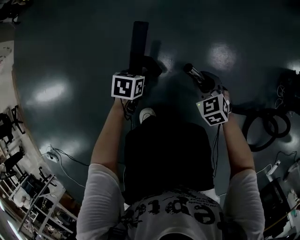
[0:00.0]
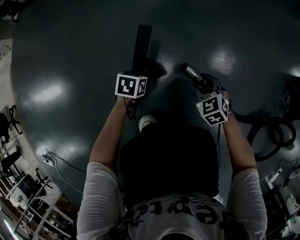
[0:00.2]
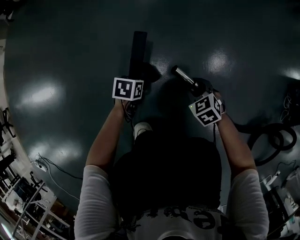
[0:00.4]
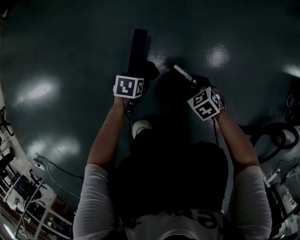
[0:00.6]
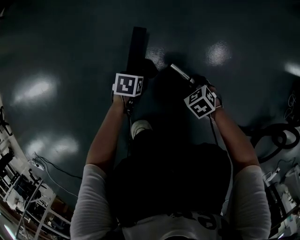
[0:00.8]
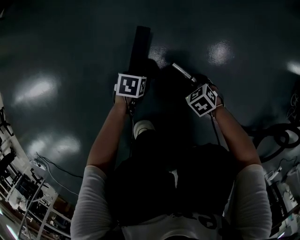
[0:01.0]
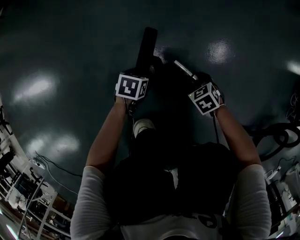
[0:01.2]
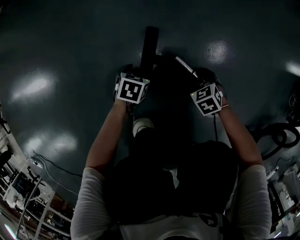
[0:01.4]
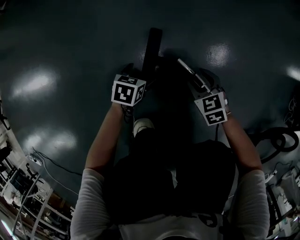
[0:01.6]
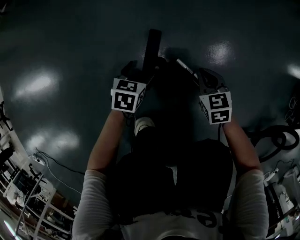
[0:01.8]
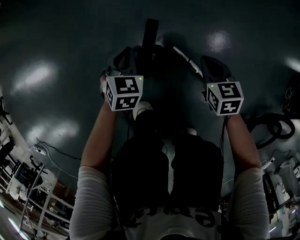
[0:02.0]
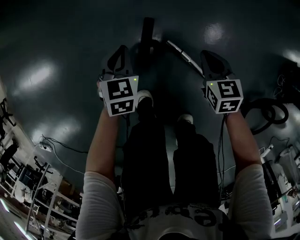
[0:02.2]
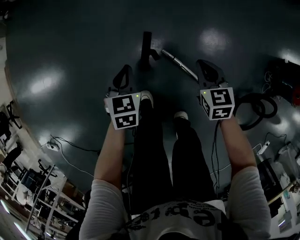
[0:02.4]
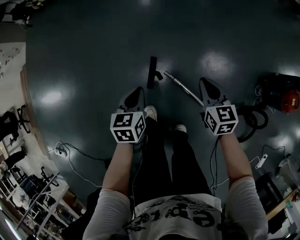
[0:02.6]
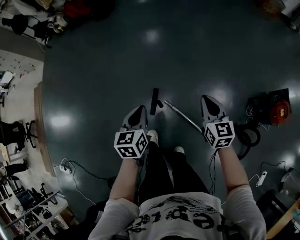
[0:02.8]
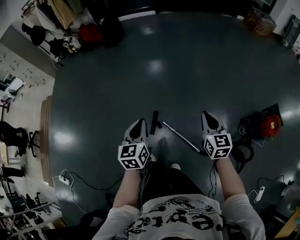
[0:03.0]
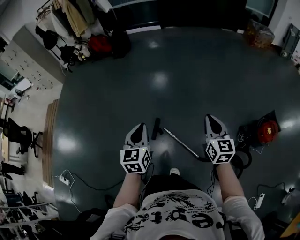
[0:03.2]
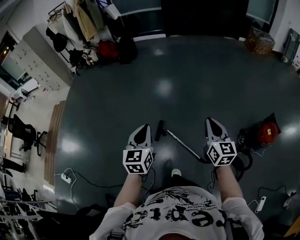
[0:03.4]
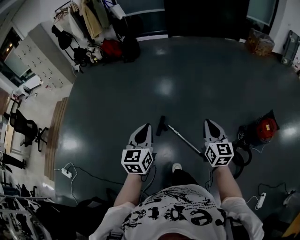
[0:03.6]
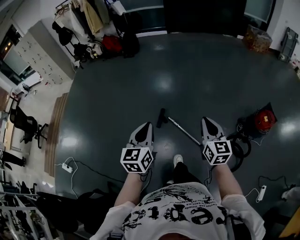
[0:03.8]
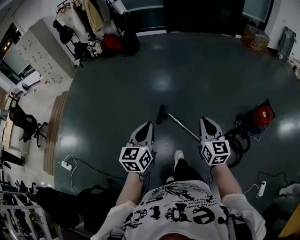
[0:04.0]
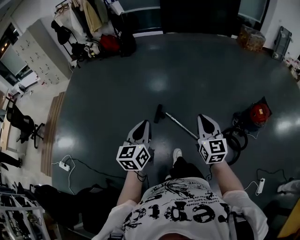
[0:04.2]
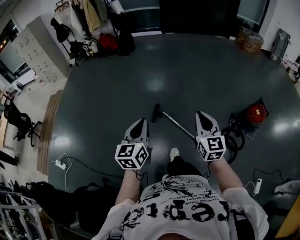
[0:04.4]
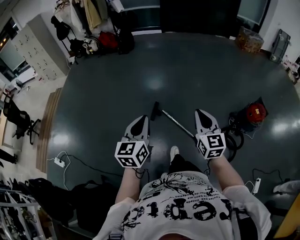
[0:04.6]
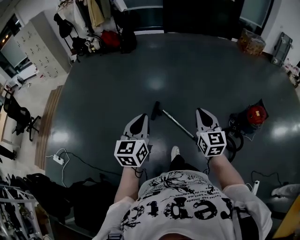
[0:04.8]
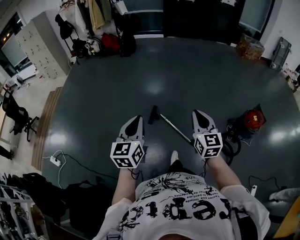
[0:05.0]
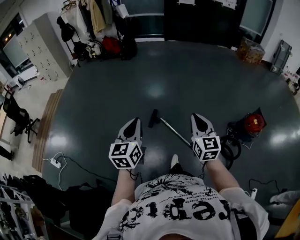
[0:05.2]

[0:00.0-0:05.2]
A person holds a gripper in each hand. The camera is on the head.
0:00.0 to 0:01.8: Both grippers move downward, about 20 cm. The right gripper closes up. Meanwhile the left gripper opens up.
0:01.8 to 0:03.4: The grippers both shift upward by roughly 1 m. The left gripper points its fingers roughly 40 degrees further upward, and closes up; the right gripper tips its fingers upward by some 40 degrees.
0:03.4 to 0:05.2: The grippers both shift backward by about 25 cm.

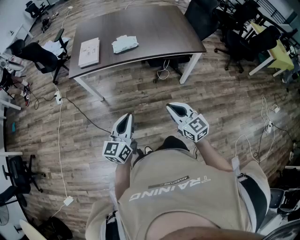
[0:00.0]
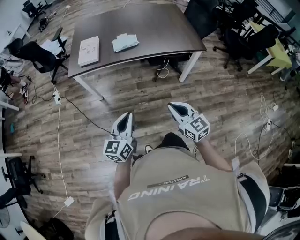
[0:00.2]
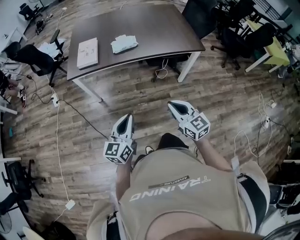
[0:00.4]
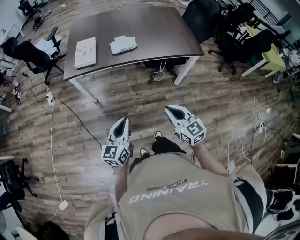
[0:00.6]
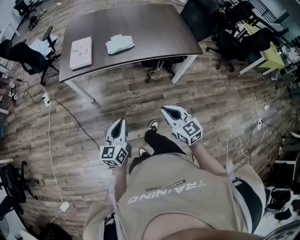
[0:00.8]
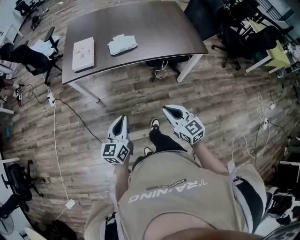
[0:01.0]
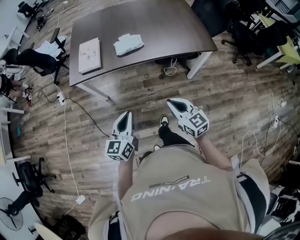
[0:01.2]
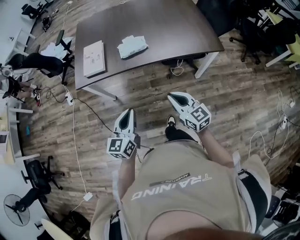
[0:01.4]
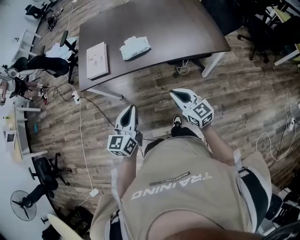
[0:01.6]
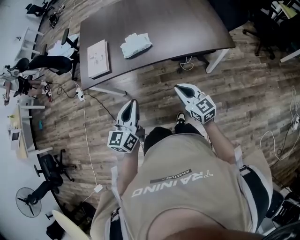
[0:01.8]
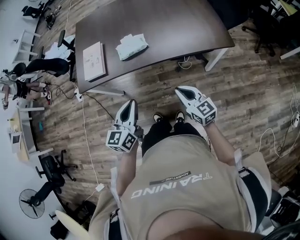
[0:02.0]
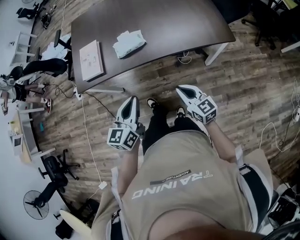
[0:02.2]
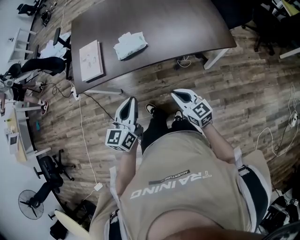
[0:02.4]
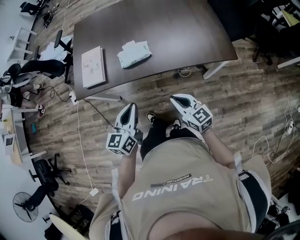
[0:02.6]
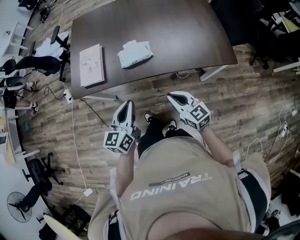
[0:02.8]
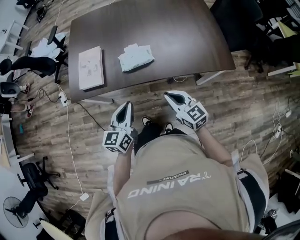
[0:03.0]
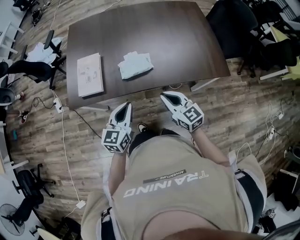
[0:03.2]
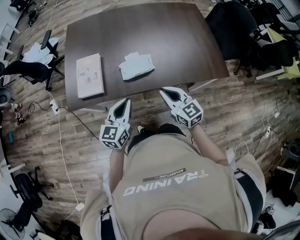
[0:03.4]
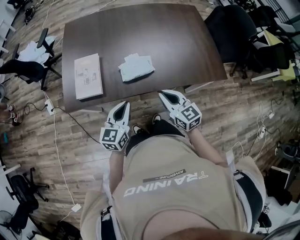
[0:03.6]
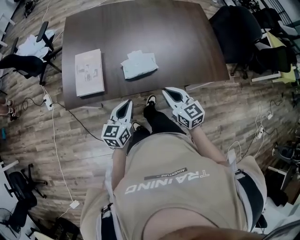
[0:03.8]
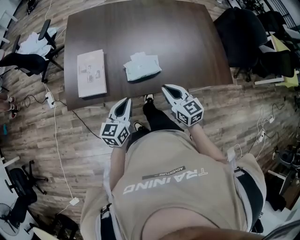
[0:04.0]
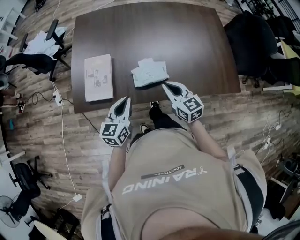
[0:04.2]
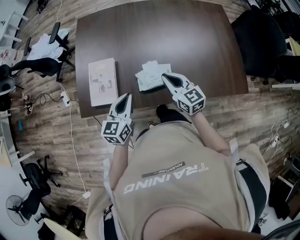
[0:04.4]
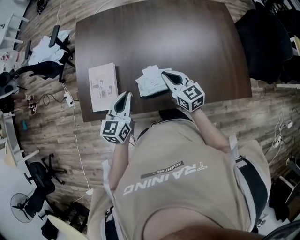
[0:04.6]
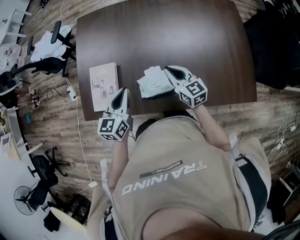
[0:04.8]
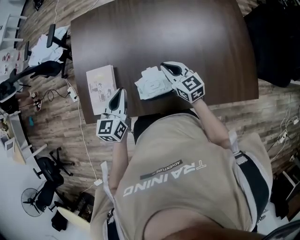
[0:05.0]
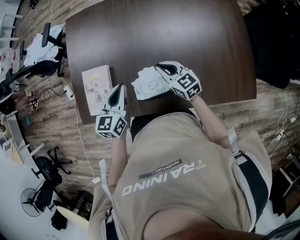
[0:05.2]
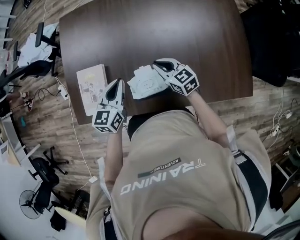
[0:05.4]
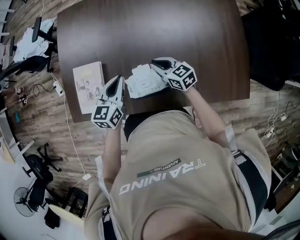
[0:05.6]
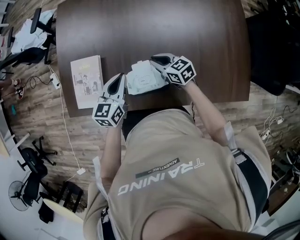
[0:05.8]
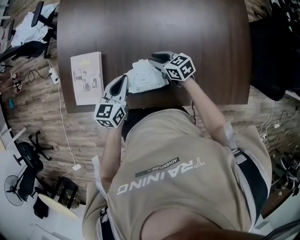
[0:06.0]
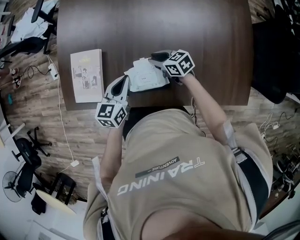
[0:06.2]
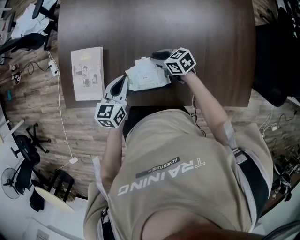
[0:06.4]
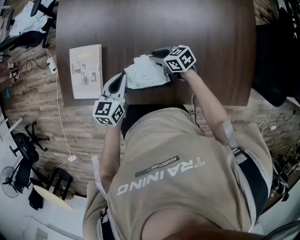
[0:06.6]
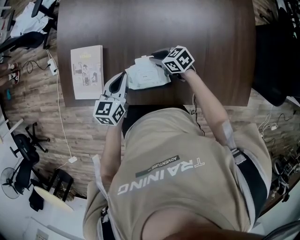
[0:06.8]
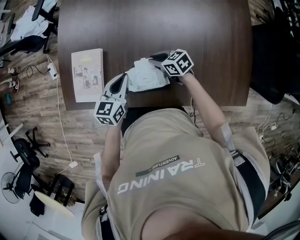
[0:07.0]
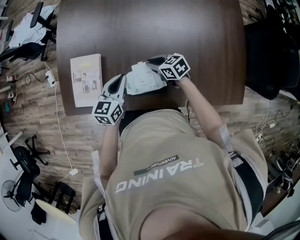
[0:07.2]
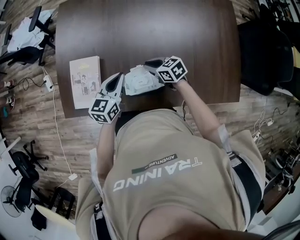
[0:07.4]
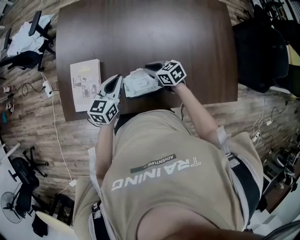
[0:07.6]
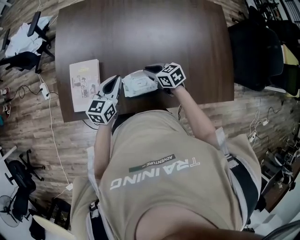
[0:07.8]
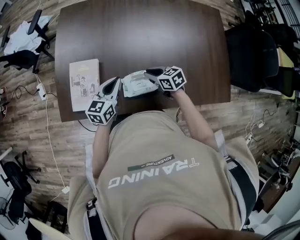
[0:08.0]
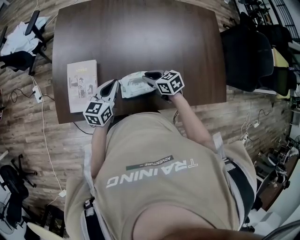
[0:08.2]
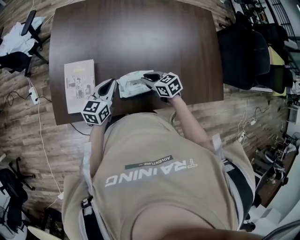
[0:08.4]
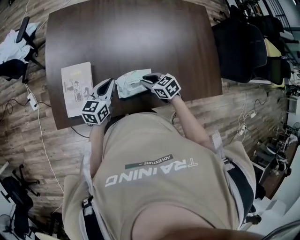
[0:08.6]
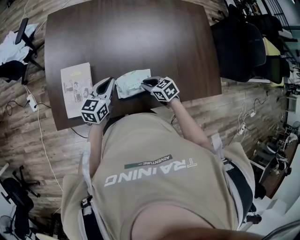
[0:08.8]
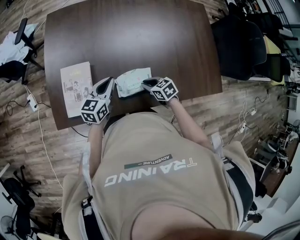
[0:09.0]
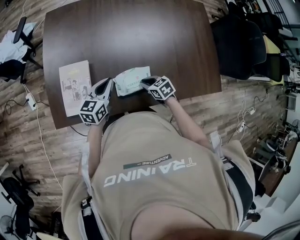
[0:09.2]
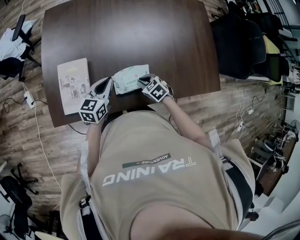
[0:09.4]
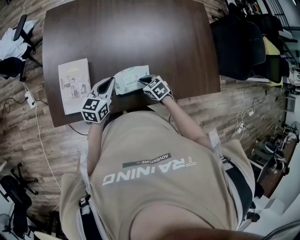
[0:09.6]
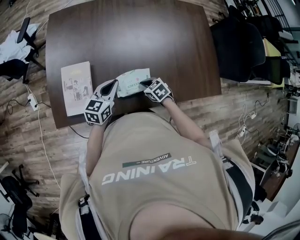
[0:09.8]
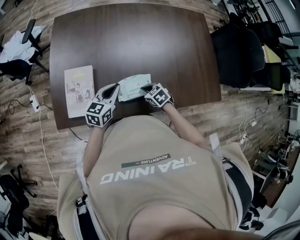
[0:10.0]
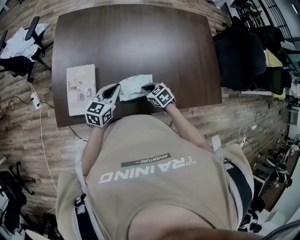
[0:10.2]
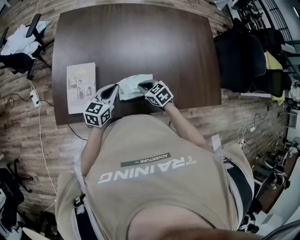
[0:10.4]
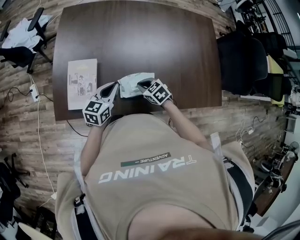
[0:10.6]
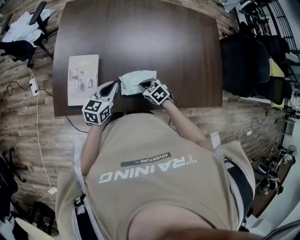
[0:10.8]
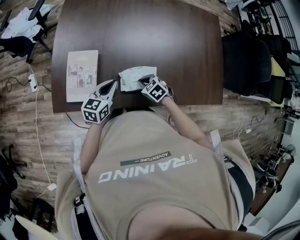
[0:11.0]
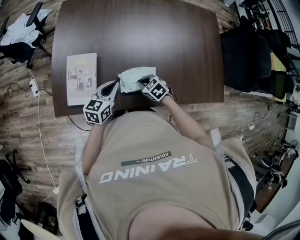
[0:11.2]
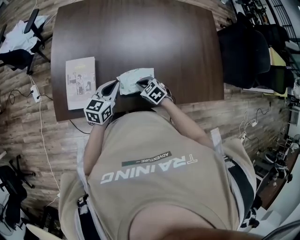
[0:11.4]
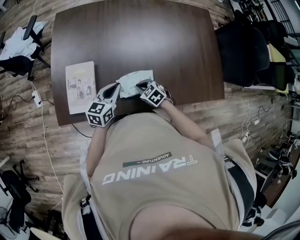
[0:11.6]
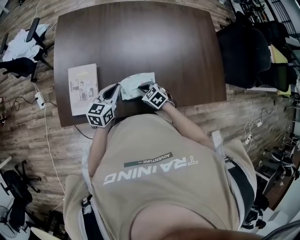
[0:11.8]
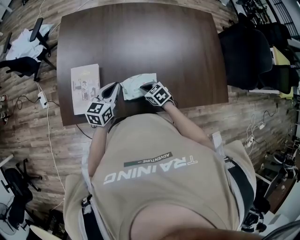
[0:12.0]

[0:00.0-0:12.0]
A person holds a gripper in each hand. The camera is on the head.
0:00.0 to 0:01.6: Both grippers travel together forward, roughly 20 cm.
0:01.6 to 0:03.0: The grippers both shift forward by some 15 cm.
0:03.0 to 0:04.4: Both grippers travel together forward, roughly 25 cm.
0:04.4 to 0:06.0: The right gripper goes some 20 cm downward and forward, and swivels approximately 30 degrees, while the left gripper moves forward, downward and to the right, approximately 15 cm.
0:06.0 to 0:07.6: The grippers stay close to where they were, moving slightly.
0:07.6 to 0:09.0: The right gripper travels backward by some 10 cm.
0:09.0 to 0:10.4: The right gripper ends up roughly 5 cm from where it was.
0:10.4 to 0:12.0: There are only small adjustments of the grippers.

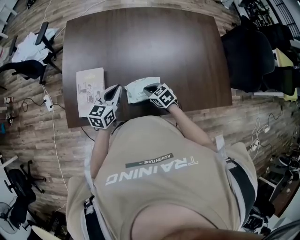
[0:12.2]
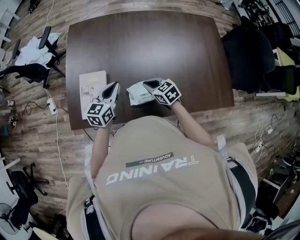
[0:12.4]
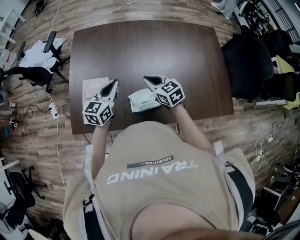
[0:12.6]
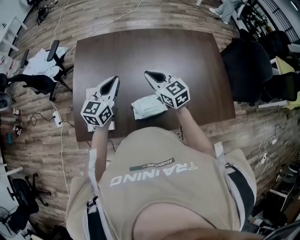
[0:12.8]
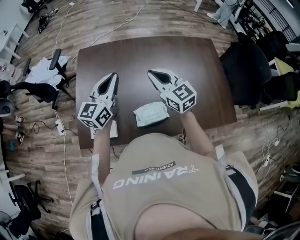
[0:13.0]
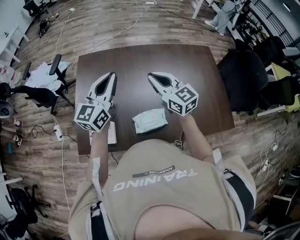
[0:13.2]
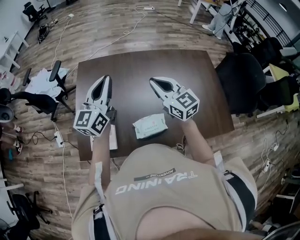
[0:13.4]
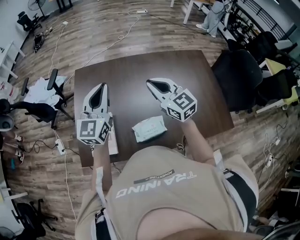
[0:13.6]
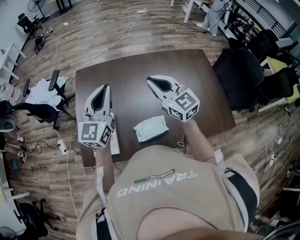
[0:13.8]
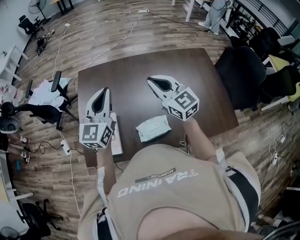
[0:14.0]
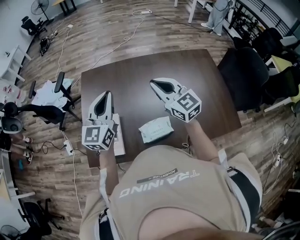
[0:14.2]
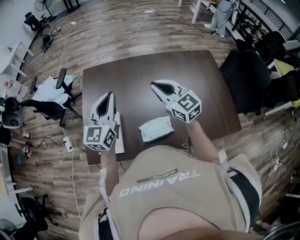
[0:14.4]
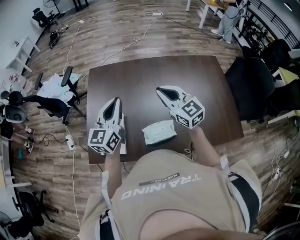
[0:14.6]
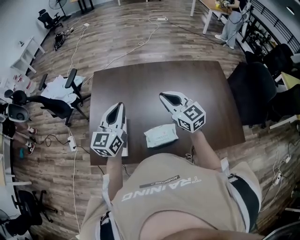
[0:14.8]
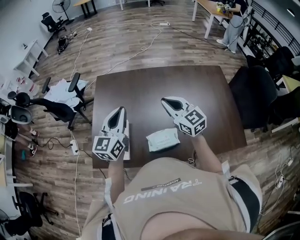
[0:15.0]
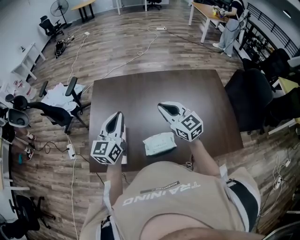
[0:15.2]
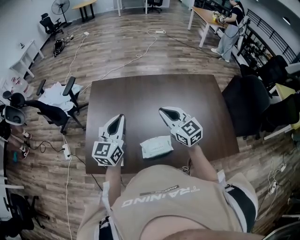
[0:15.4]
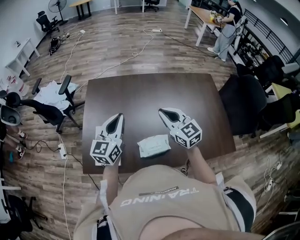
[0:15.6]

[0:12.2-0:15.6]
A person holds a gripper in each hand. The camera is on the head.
0:12.2 to 0:13.8: The grippers both shift upward by approximately 30 cm. The left gripper swivels approximately 40 degrees. The right gripper points its fingers some 50 degrees further upward.
0:13.8 to 0:15.6: The two grippers go approximately 5 cm downward.

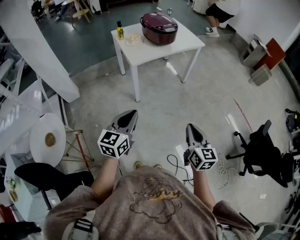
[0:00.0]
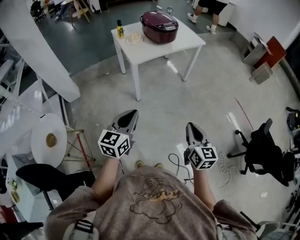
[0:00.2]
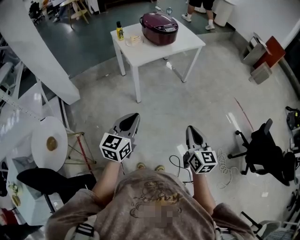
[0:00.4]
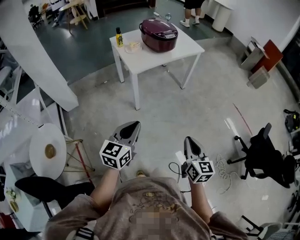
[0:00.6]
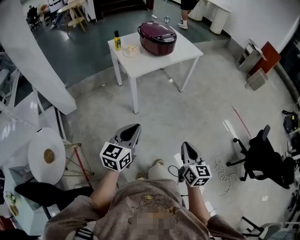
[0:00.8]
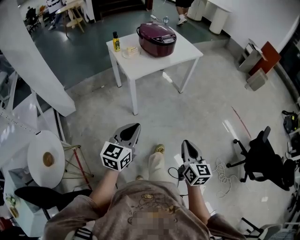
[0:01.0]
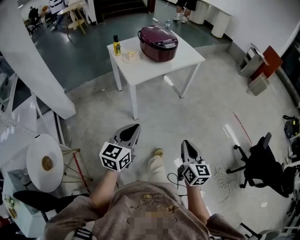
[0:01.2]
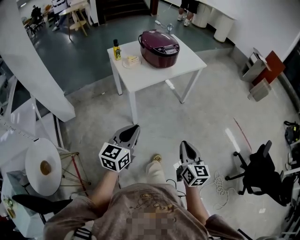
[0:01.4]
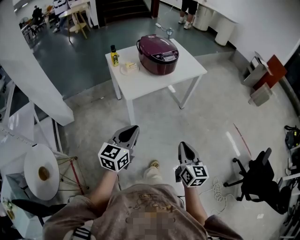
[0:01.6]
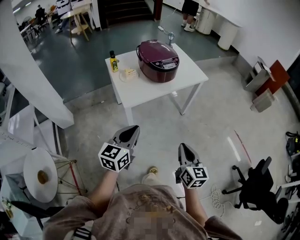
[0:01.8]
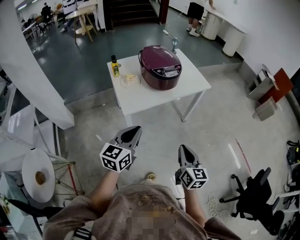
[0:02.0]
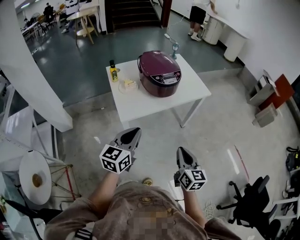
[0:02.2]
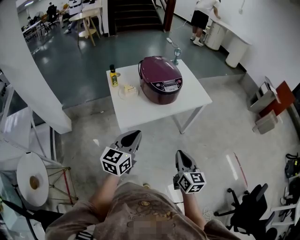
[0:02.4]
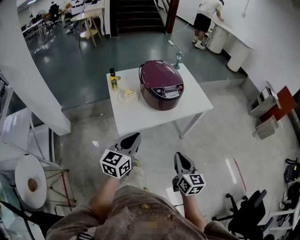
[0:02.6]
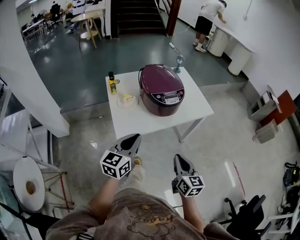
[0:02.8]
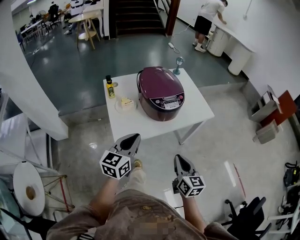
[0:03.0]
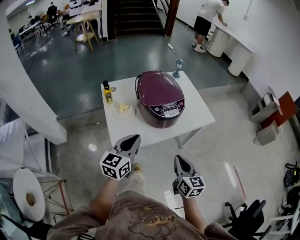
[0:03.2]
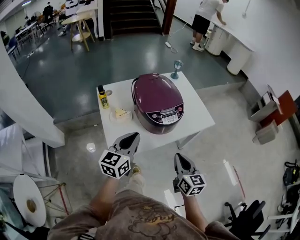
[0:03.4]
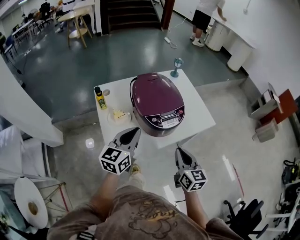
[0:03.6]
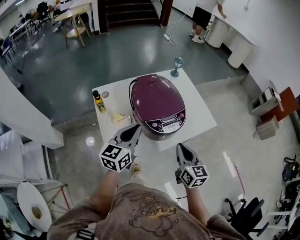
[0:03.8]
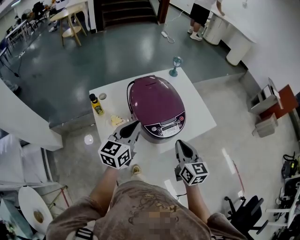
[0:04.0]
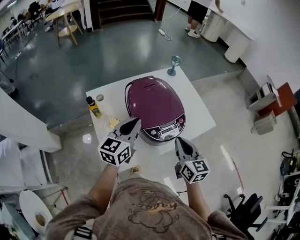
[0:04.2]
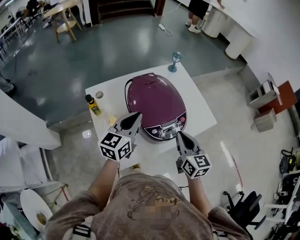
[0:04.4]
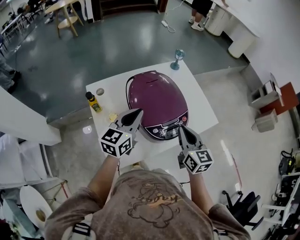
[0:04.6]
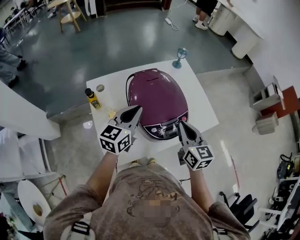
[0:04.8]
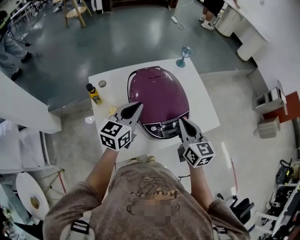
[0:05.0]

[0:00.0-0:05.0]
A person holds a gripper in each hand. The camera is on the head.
0:00.0 to 0:01.6: Both grippers travel together forward, about 20 cm.
0:01.6 to 0:03.4: The grippers both shift forward by roughly 40 cm.
0:03.4 to 0:05.0: Both grippers move forward, approximately 20 cm.
